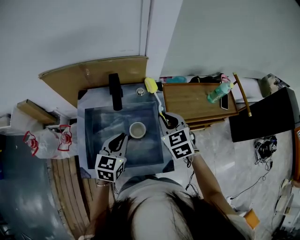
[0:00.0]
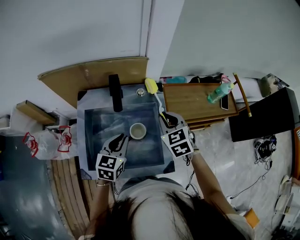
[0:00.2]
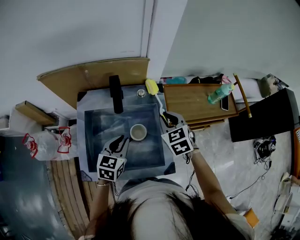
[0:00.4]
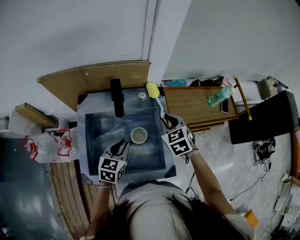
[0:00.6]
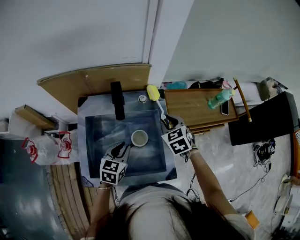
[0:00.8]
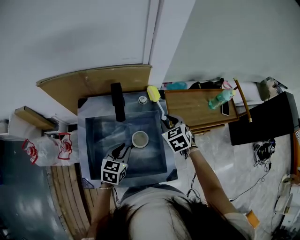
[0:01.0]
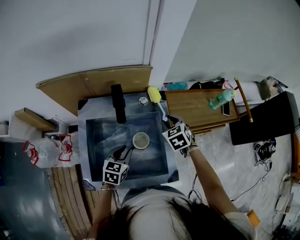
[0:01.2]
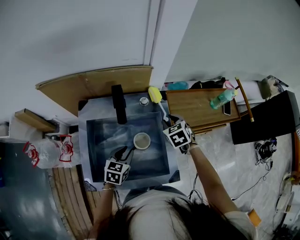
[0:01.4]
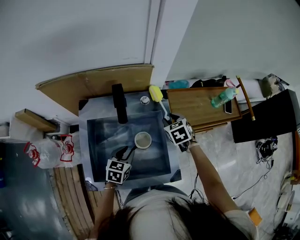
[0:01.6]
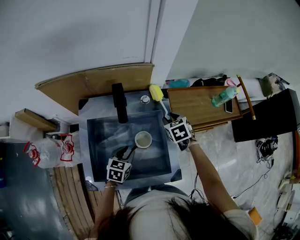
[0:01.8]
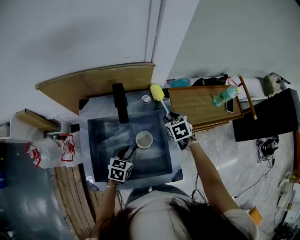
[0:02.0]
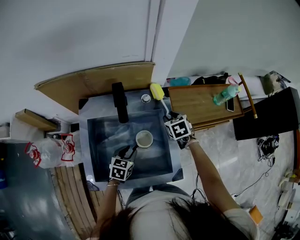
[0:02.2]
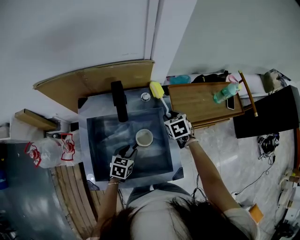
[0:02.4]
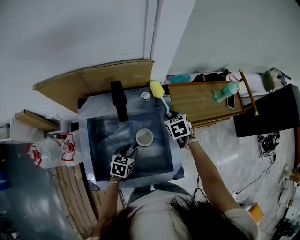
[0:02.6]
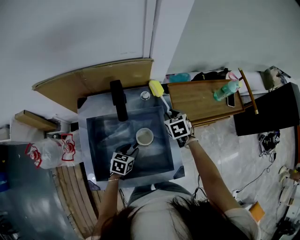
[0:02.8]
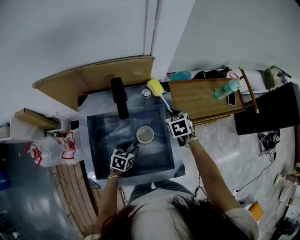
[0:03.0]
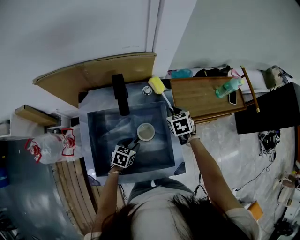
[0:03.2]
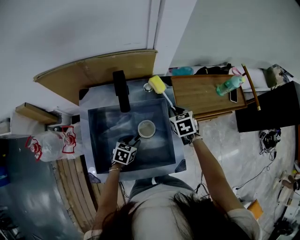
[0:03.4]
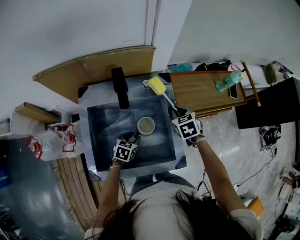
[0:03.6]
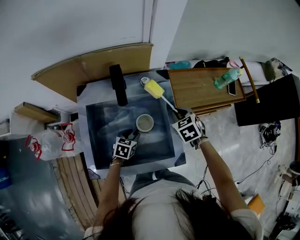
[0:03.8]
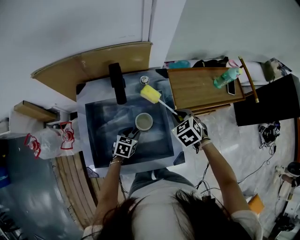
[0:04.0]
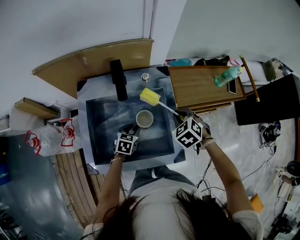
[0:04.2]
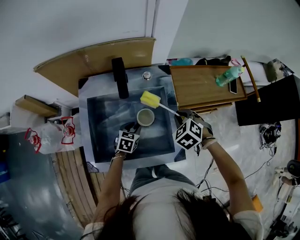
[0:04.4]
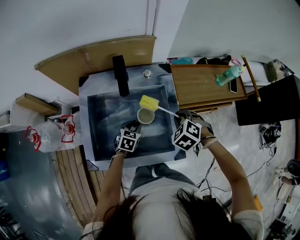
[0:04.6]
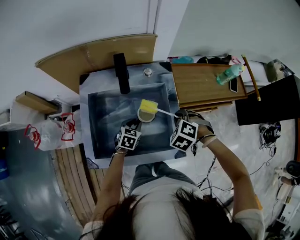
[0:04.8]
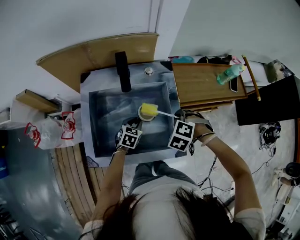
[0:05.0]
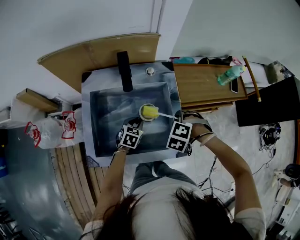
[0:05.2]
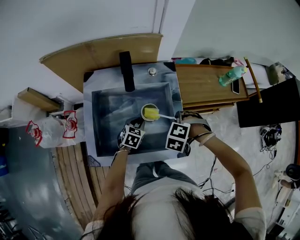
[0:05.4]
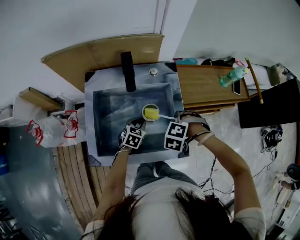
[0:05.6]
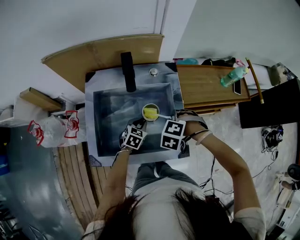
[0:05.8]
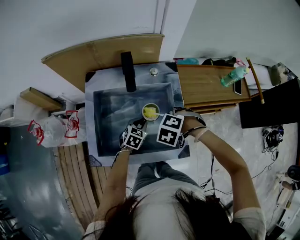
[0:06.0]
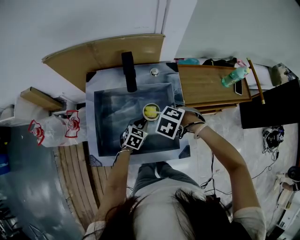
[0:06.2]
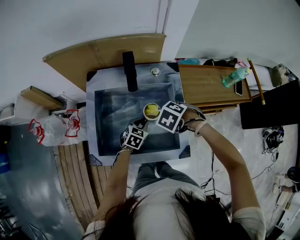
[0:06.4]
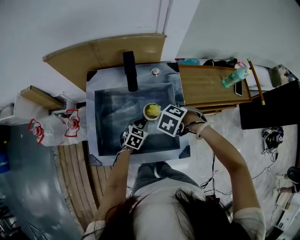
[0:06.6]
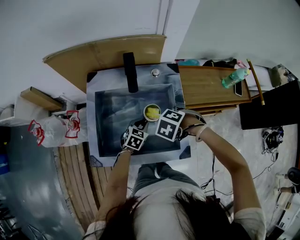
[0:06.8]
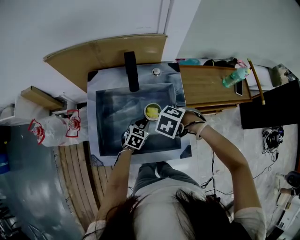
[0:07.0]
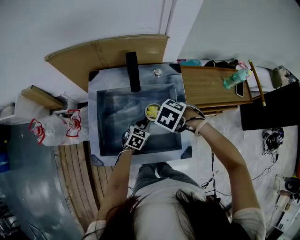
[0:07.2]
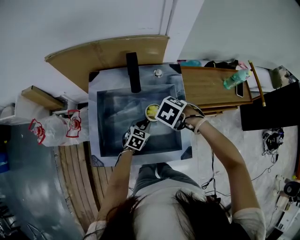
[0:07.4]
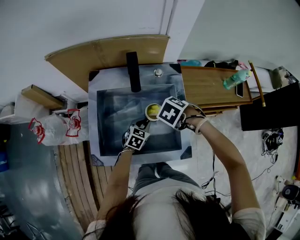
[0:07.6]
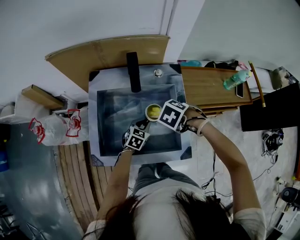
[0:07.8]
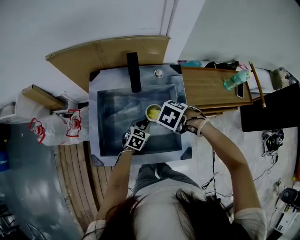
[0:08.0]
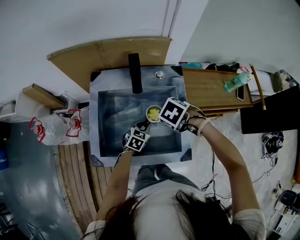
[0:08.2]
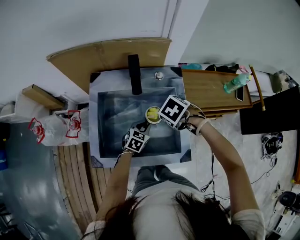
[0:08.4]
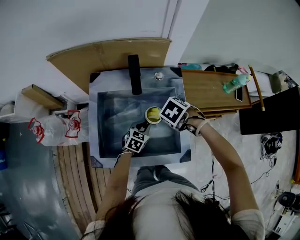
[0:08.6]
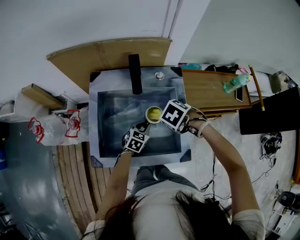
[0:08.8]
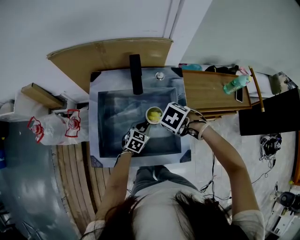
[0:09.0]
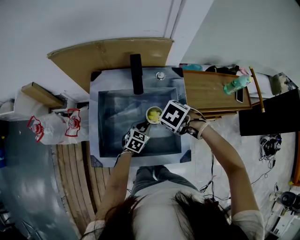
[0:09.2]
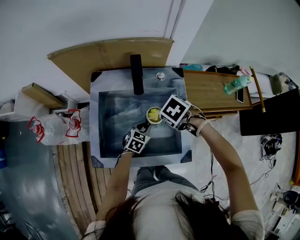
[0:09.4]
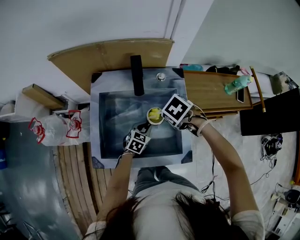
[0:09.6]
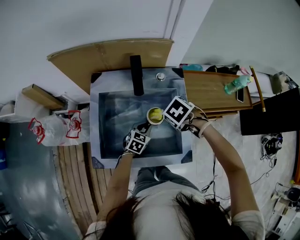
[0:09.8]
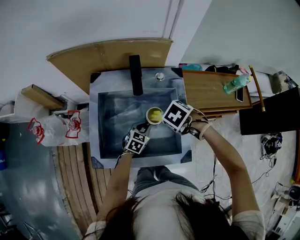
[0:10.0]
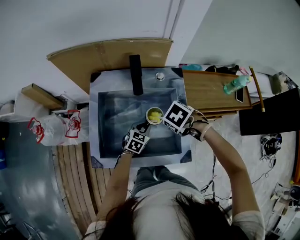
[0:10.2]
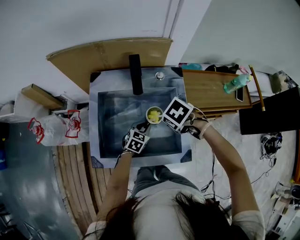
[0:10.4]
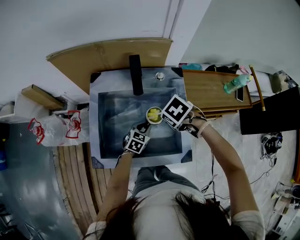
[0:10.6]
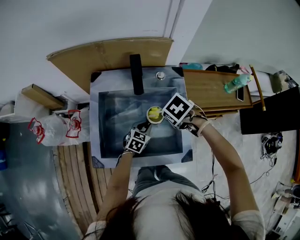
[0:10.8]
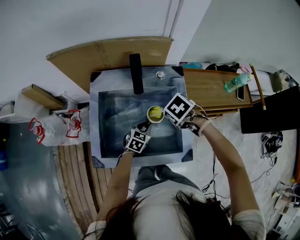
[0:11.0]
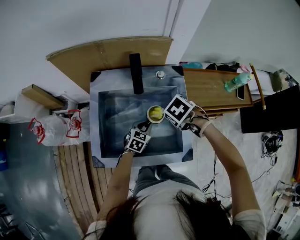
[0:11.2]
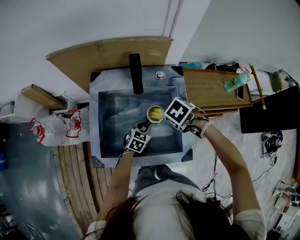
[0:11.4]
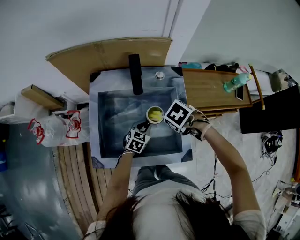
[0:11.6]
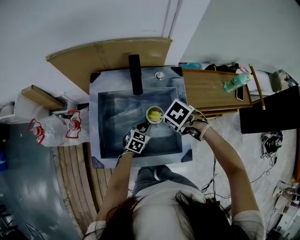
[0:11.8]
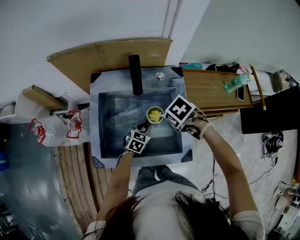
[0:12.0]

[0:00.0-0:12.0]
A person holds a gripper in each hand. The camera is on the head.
0:00.0 to 0:01.6: The left gripper travels downward by roughly 15 cm, and opens; the right gripper is displaced downward and forward by roughly 15 cm, and opens its fingers.
0:01.6 to 0:03.0: The right gripper closes up. The left gripper is displaced downward by about 10 cm.
0:03.0 to 0:04.4: The right gripper moves backward, approximately 10 cm, and changes its angle by approximately 40 degrees.
0:04.4 to 0:06.0: The right gripper ends up approximately 5 cm from where it was, and rotates some 30 degrees.
0:06.0 to 0:07.6: The right gripper turns by some 20 degrees.
0:07.6 to 0:12.0: There are only small adjustments of the grippers.

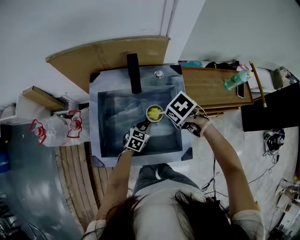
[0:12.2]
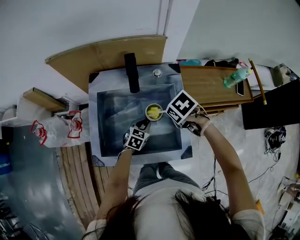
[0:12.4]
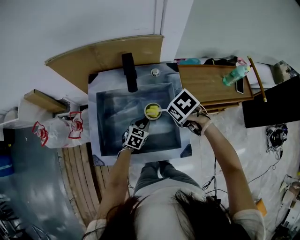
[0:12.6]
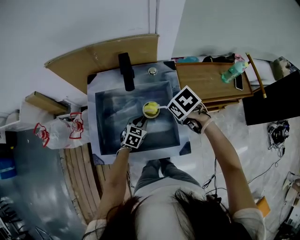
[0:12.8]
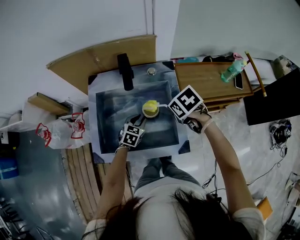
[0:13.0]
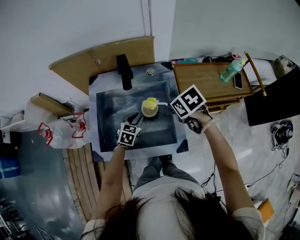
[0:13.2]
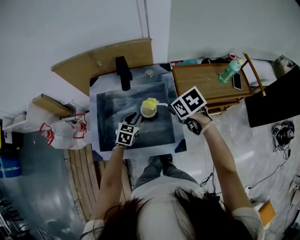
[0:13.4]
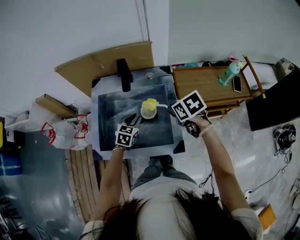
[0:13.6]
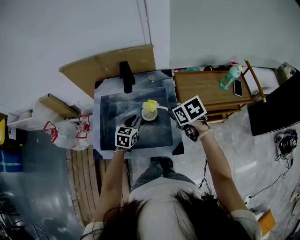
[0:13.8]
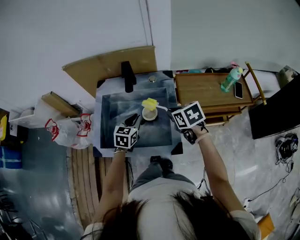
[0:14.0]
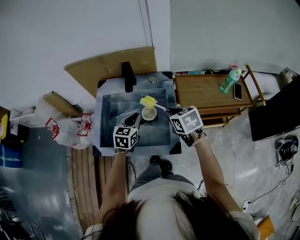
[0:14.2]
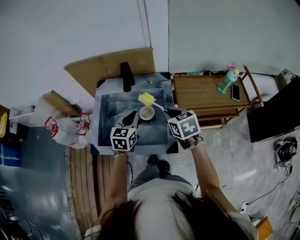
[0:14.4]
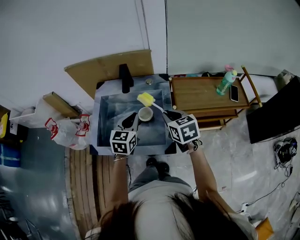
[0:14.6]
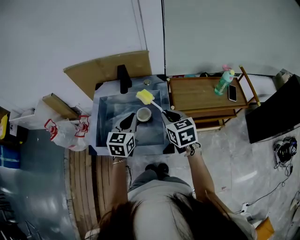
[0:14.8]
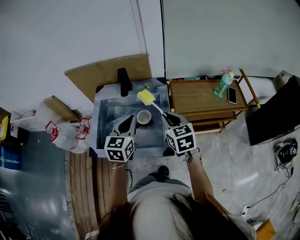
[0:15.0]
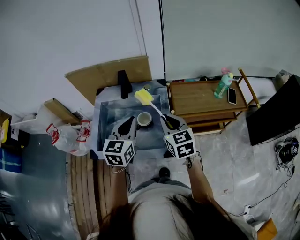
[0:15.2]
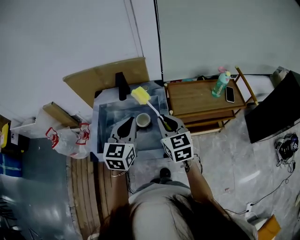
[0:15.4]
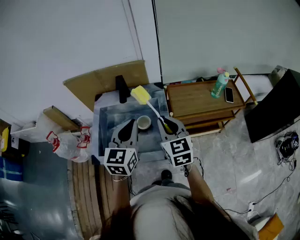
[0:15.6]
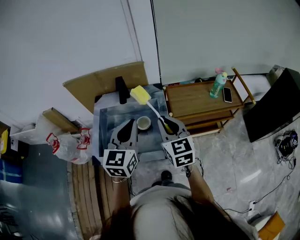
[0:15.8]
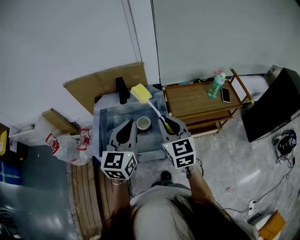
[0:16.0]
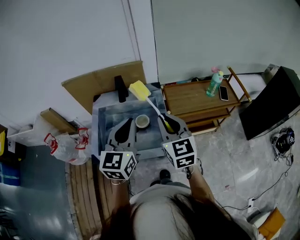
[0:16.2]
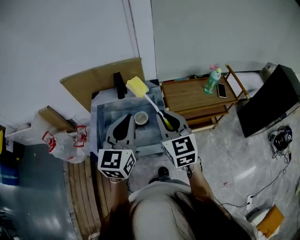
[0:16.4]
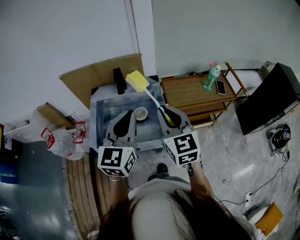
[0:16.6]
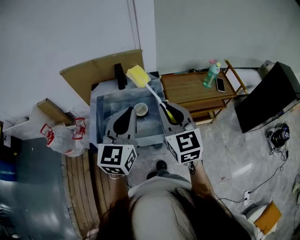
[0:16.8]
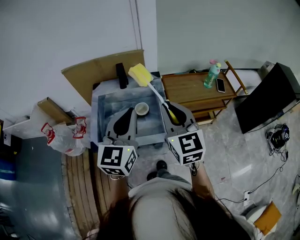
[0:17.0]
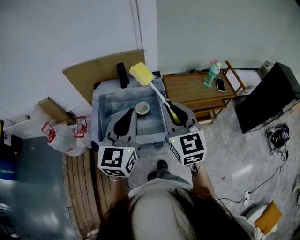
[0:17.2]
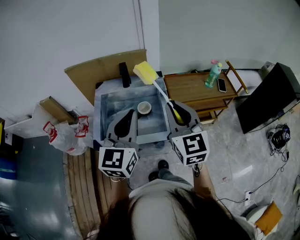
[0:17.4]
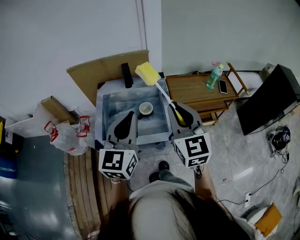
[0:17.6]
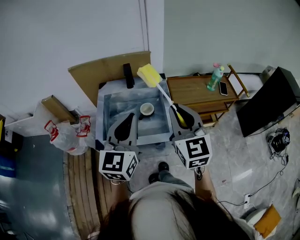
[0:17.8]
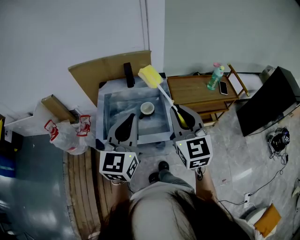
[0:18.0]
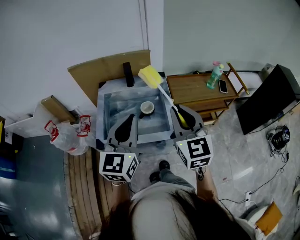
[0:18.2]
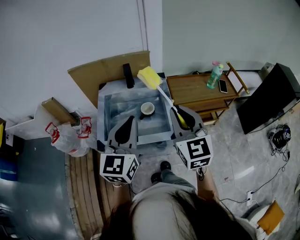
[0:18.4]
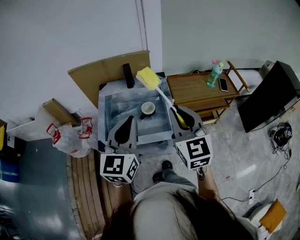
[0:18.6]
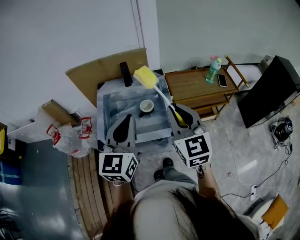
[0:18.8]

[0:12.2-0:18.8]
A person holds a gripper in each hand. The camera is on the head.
0:12.2 to 0:13.8: The right gripper shifts approximately 10 cm upward and to the right, and rotates about 30 degrees, while the left gripper heads upward, covering approximately 10 cm.
0:13.8 to 0:15.4: The left gripper goes about 20 cm upward, and turns by roughly 20 degrees, while the right gripper travels upward and backward by roughly 10 cm, and tips its fingers upward by about 30 degrees.
0:15.4 to 0:17.2: The left gripper goes roughly 15 cm backward and upward. Meanwhile the right gripper moves upward and backward, approximately 15 cm.
0:17.2 to 0:18.8: The grippers make only small movements.

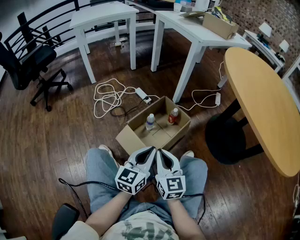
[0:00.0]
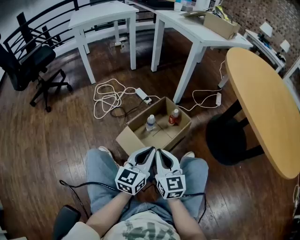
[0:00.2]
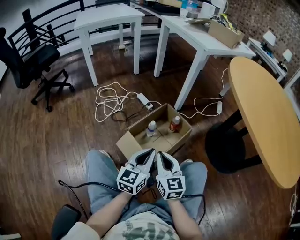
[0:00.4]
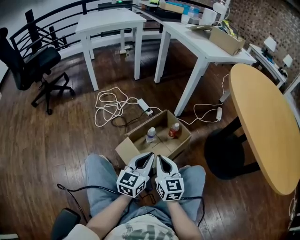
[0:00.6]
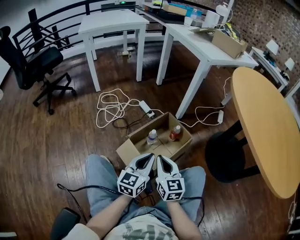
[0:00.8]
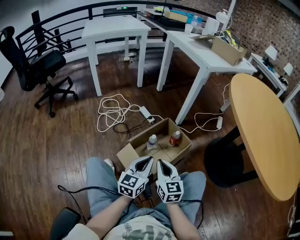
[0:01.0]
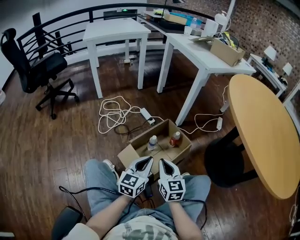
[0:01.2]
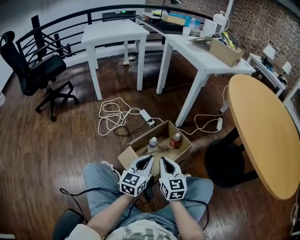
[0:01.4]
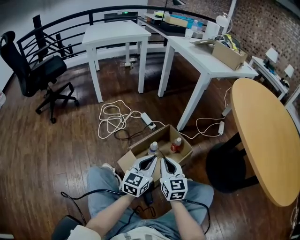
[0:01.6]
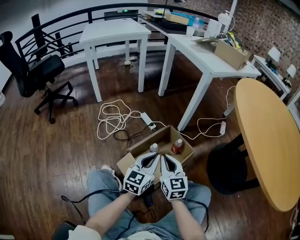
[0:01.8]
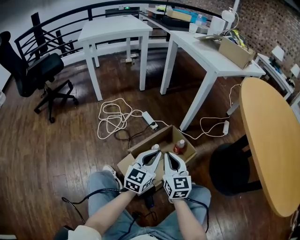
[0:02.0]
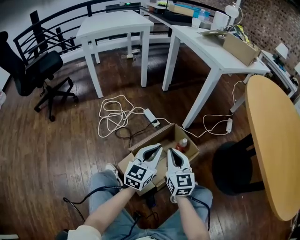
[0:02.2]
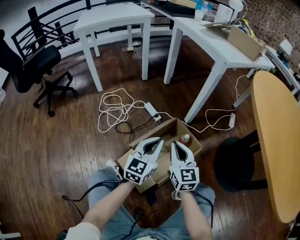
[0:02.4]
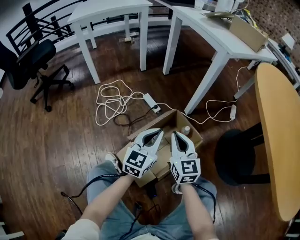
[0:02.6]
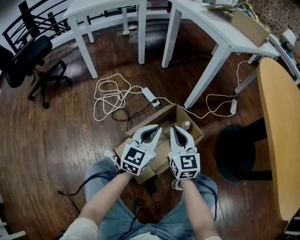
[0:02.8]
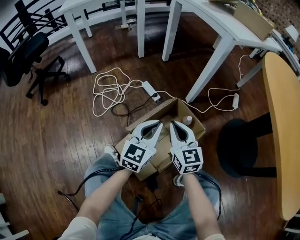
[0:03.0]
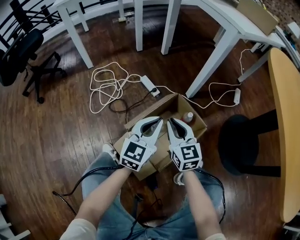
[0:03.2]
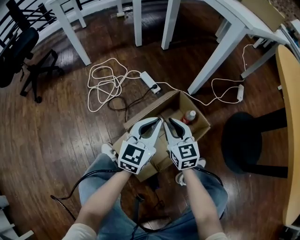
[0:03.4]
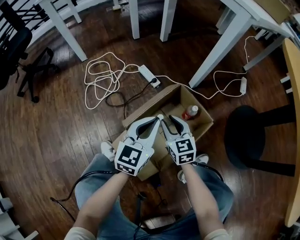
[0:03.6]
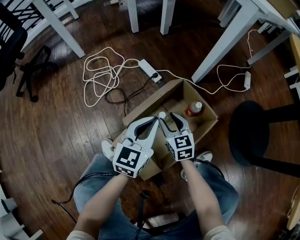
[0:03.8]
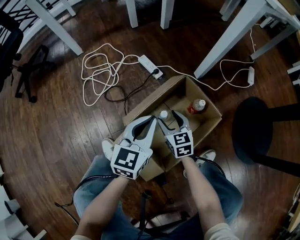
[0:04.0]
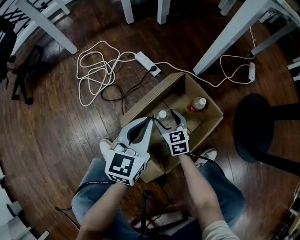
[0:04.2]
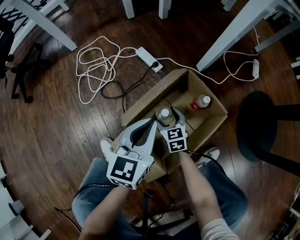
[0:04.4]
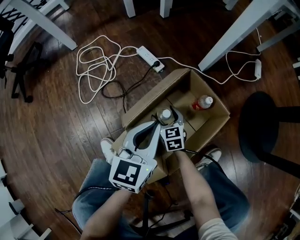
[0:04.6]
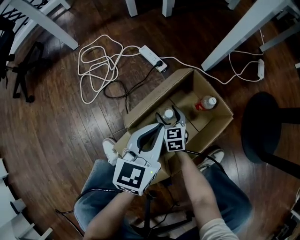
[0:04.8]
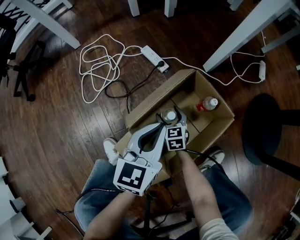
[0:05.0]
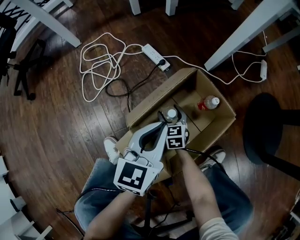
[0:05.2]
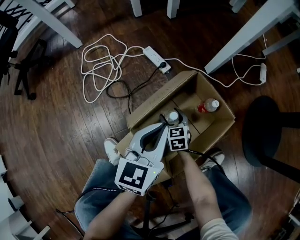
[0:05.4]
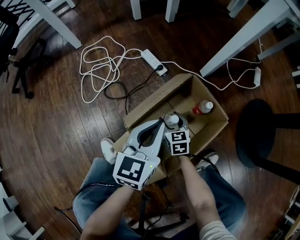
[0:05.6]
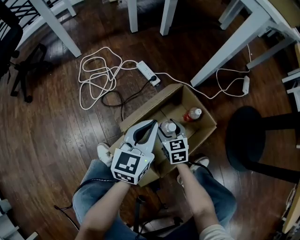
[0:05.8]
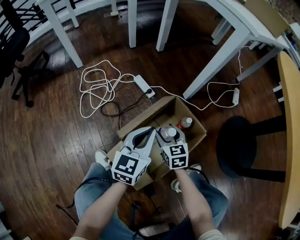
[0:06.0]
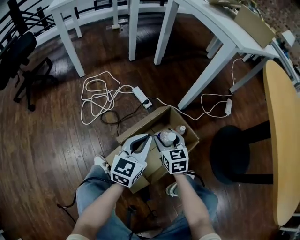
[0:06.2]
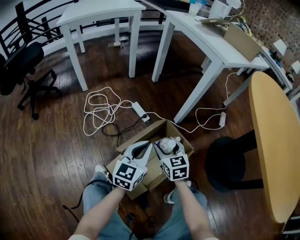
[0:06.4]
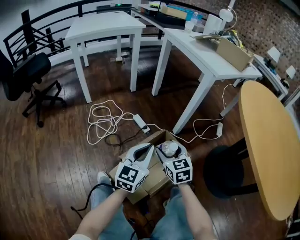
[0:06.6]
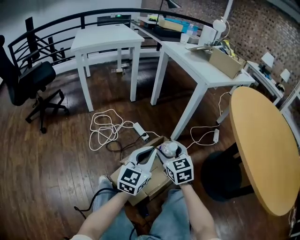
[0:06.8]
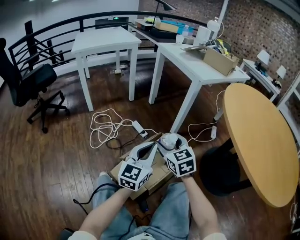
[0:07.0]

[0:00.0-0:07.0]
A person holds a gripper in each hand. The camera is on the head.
0:00.0 to 0:01.4: Both grippers travel together forward, some 10 cm.
0:01.4 to 0:02.8: The two grippers go about 15 cm forward.
0:02.8 to 0:04.2: The right gripper moves downward, about 30 cm, rotates about 30 degrees, and opens; the left gripper moves downward, about 10 cm.
0:05.6 to 0:07.0: The left gripper goes some 30 cm upward and backward, and swivels some 20 degrees. Meanwhile the right gripper moves upward, approximately 50 cm, and turns by about 30 degrees.
